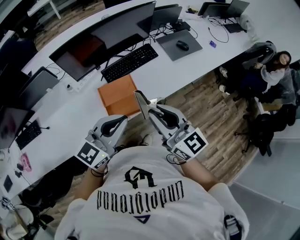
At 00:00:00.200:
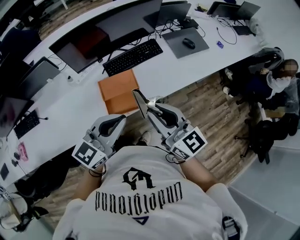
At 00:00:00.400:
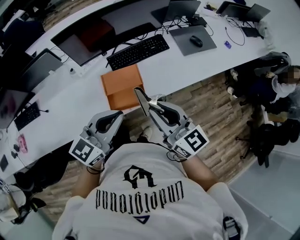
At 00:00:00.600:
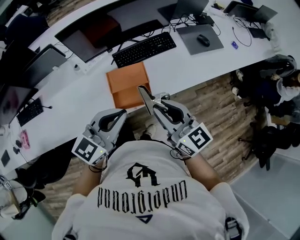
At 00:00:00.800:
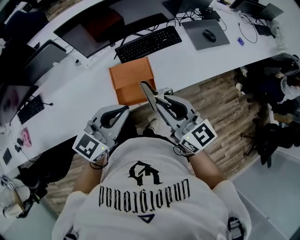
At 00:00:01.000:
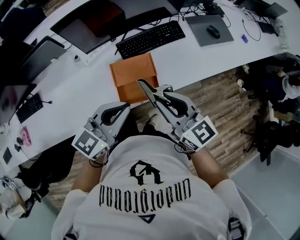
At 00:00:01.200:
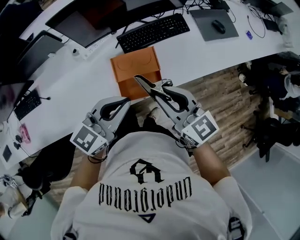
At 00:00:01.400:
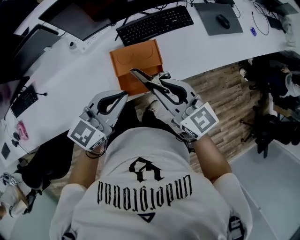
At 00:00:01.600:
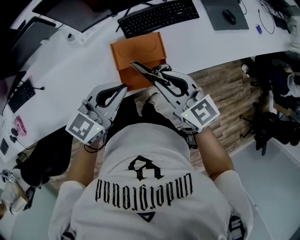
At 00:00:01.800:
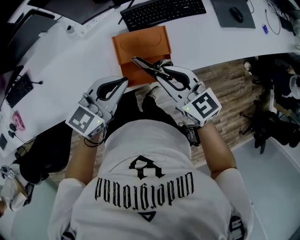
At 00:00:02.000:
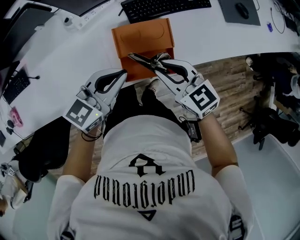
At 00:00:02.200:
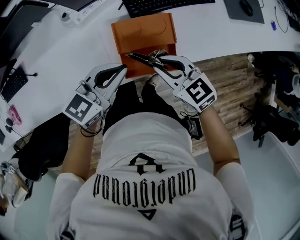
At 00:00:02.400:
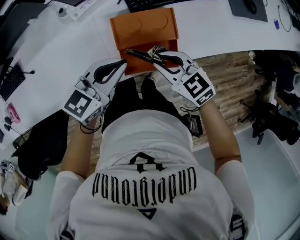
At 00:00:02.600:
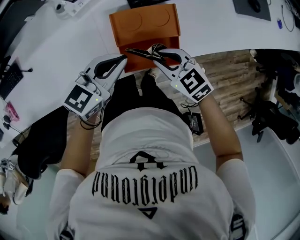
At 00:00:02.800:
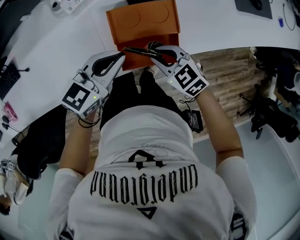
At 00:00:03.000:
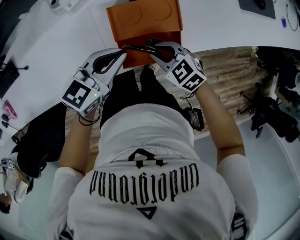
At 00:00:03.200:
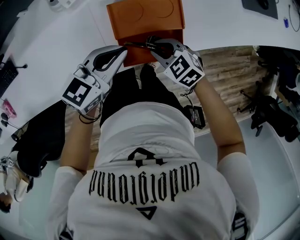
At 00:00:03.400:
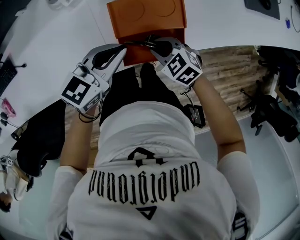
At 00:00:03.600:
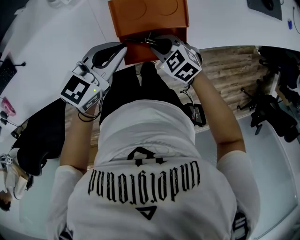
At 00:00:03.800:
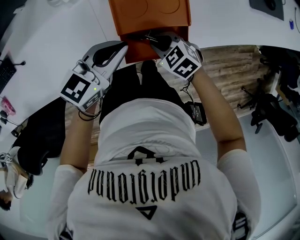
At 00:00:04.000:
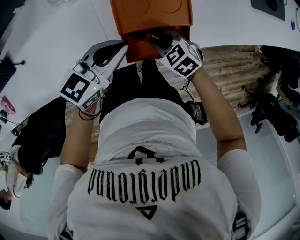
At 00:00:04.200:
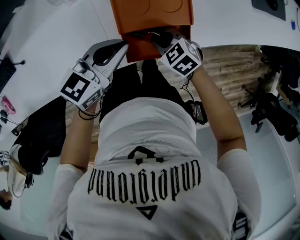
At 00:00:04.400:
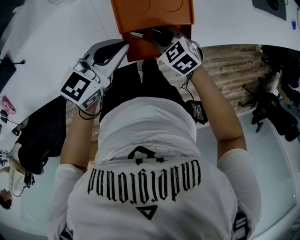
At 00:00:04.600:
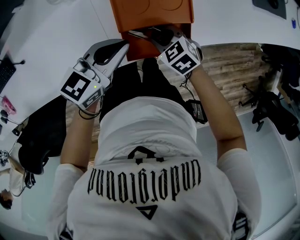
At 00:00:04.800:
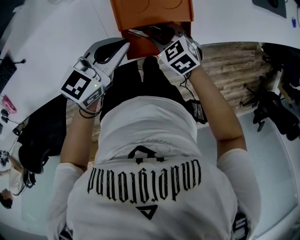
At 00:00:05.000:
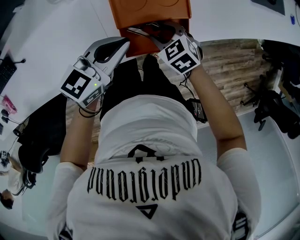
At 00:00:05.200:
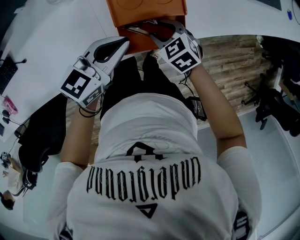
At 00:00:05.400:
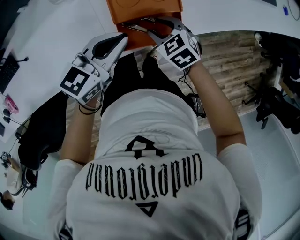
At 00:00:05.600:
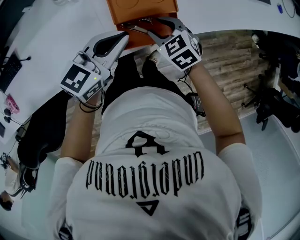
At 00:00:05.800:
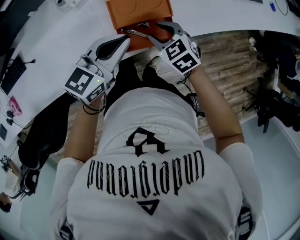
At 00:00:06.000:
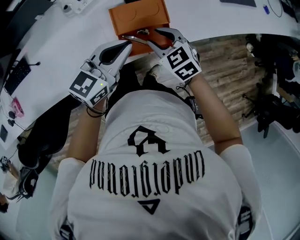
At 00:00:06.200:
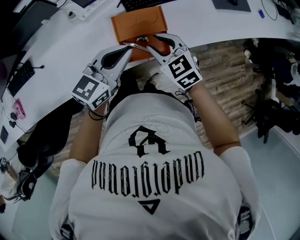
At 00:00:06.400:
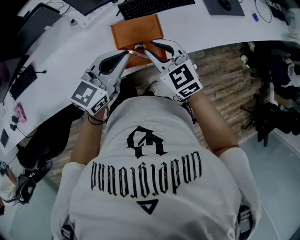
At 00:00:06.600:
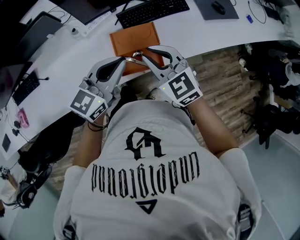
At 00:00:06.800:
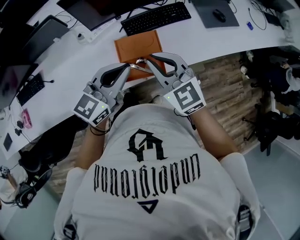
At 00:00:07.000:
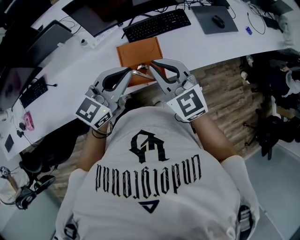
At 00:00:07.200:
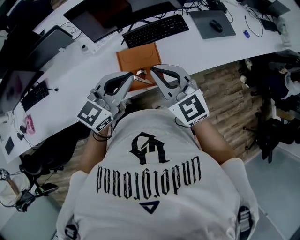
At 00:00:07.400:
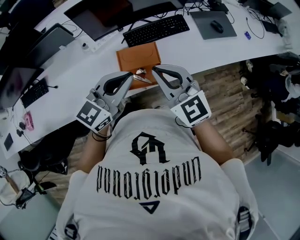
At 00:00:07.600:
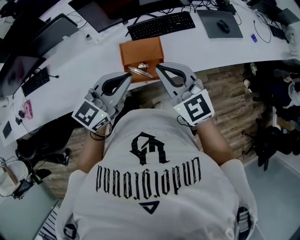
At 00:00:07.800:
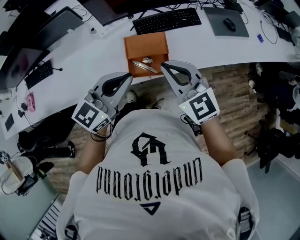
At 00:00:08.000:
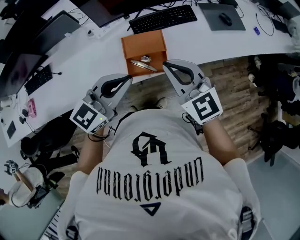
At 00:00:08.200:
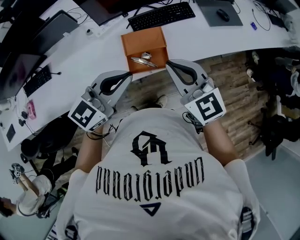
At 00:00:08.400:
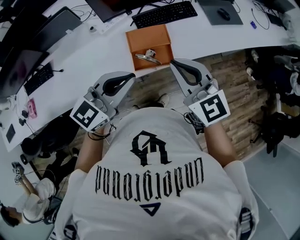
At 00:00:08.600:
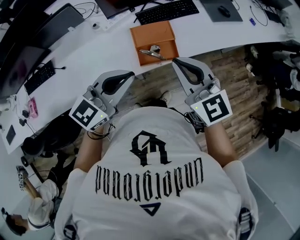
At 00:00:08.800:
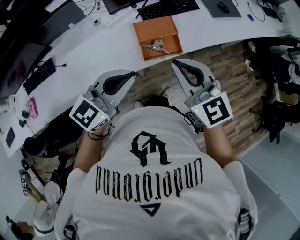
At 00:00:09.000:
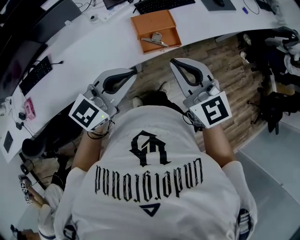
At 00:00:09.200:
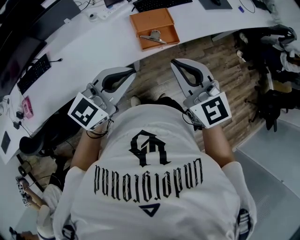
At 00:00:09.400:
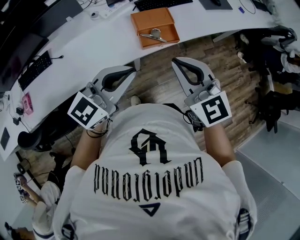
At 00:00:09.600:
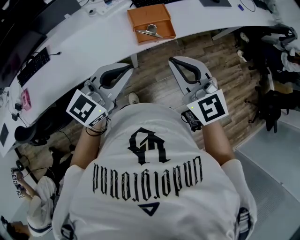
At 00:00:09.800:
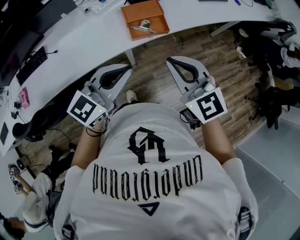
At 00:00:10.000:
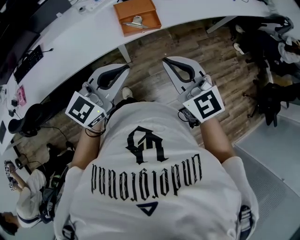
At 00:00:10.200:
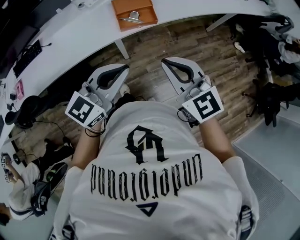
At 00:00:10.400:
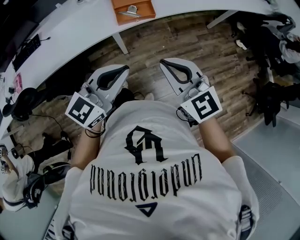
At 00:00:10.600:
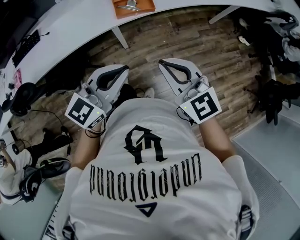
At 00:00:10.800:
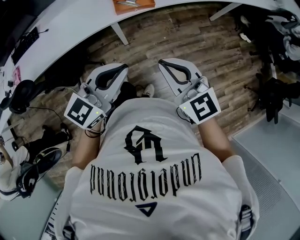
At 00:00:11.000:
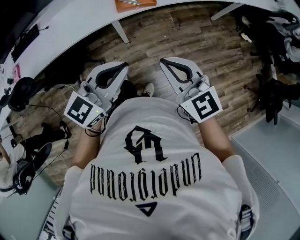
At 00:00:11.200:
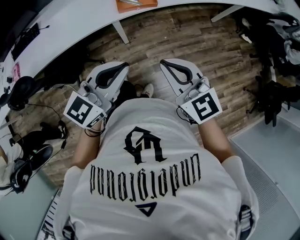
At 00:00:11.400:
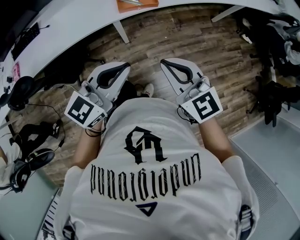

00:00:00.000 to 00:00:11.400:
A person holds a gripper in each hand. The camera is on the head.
00:00:00.000 to 00:00:01.400: The grippers both shift downward, forward and to the left by about 20 cm. The right gripper turns by about 20 degrees.
00:00:01.400 to 00:00:02.800: The right gripper heads downward, covering approximately 25 cm, and swivels approximately 40 degrees. The left gripper shifts roughly 15 cm downward.
00:00:02.800 to 00:00:04.200: The right gripper goes some 10 cm downward.
00:00:04.200 to 00:00:05.600: Both grippers move upward, approximately 10 cm.
00:00:05.600 to 00:00:07.200: The right gripper shifts some 30 cm upward, tilts its fingers about 40 degrees upward, and closes. The left gripper is displaced upward by approximately 20 cm, and rotates some 20 degrees.
00:00:07.200 to 00:00:08.600: The right gripper heads backward, covering roughly 10 cm, while the left gripper heads backward and to the left, covering approximately 15 cm.
00:00:08.600 to 00:00:10.000: Both grippers move backward, about 20 cm.
00:00:10.000 to 00:00:11.400: The two grippers go approximately 10 cm backward and to the right.

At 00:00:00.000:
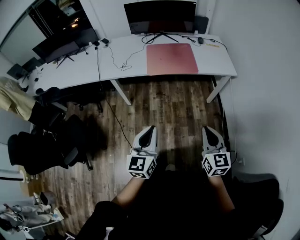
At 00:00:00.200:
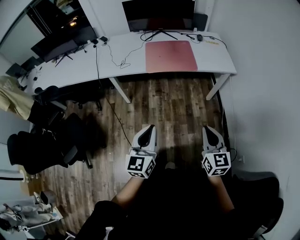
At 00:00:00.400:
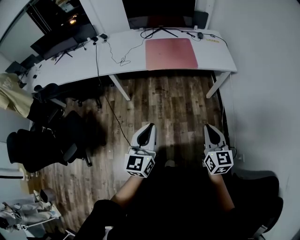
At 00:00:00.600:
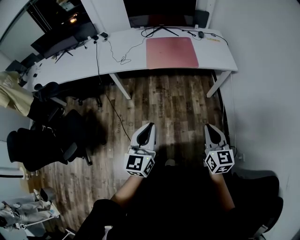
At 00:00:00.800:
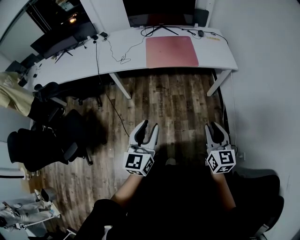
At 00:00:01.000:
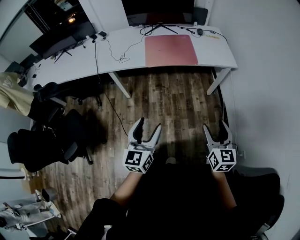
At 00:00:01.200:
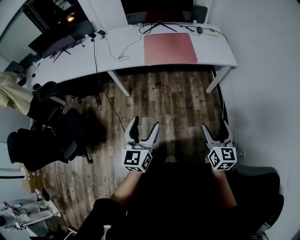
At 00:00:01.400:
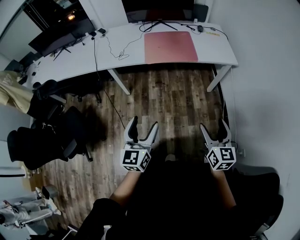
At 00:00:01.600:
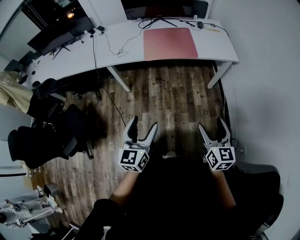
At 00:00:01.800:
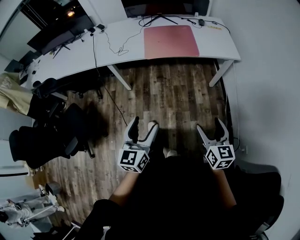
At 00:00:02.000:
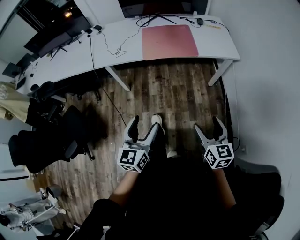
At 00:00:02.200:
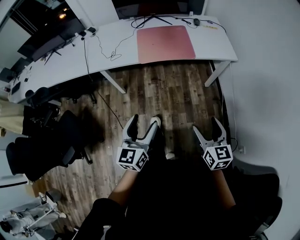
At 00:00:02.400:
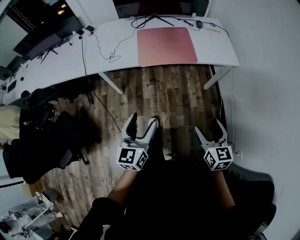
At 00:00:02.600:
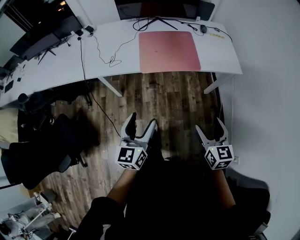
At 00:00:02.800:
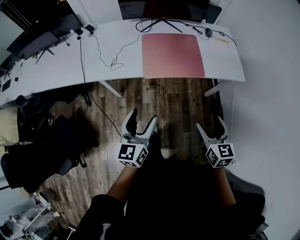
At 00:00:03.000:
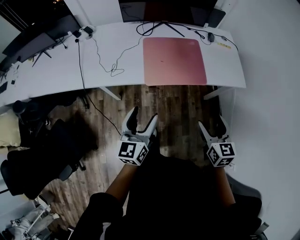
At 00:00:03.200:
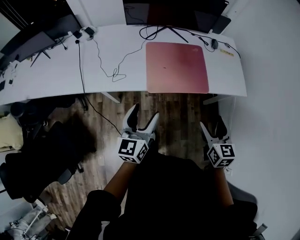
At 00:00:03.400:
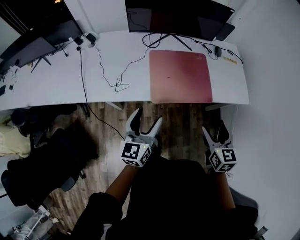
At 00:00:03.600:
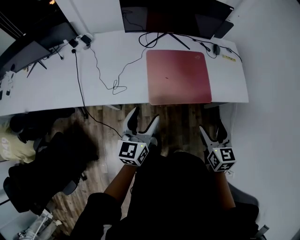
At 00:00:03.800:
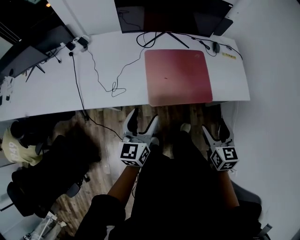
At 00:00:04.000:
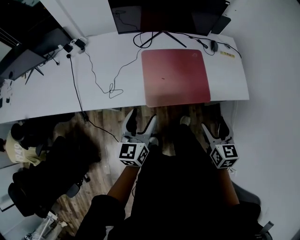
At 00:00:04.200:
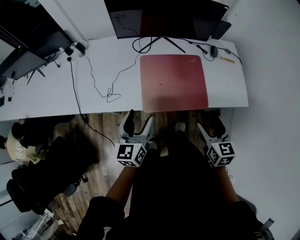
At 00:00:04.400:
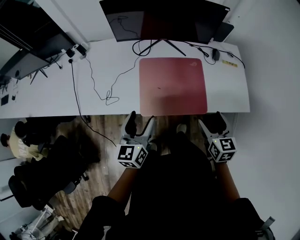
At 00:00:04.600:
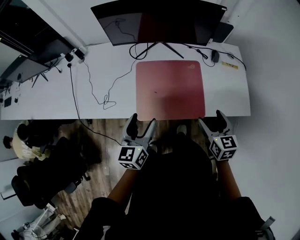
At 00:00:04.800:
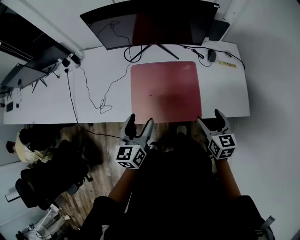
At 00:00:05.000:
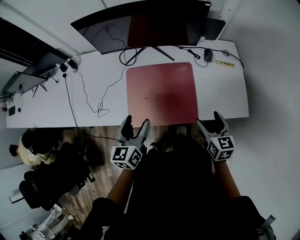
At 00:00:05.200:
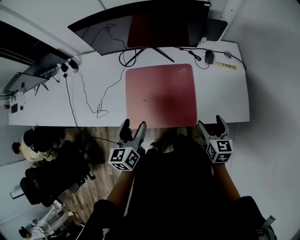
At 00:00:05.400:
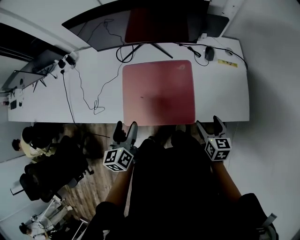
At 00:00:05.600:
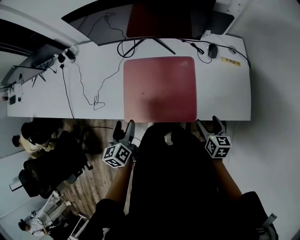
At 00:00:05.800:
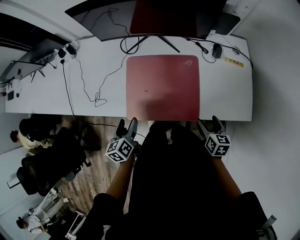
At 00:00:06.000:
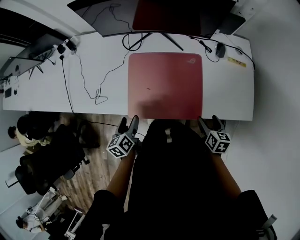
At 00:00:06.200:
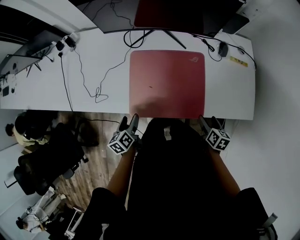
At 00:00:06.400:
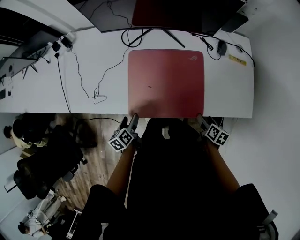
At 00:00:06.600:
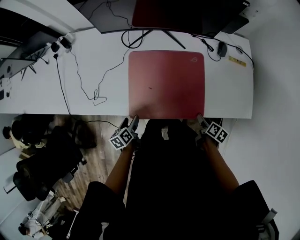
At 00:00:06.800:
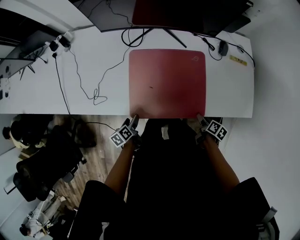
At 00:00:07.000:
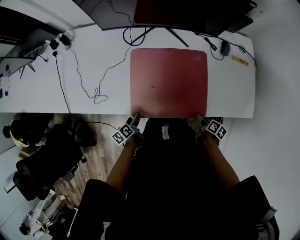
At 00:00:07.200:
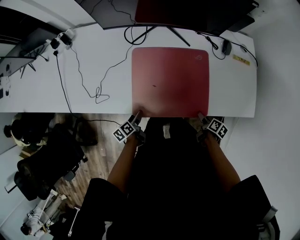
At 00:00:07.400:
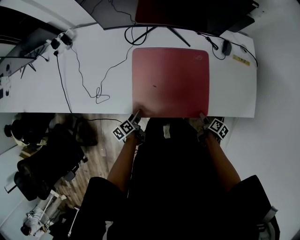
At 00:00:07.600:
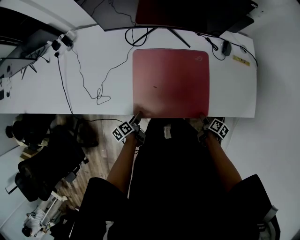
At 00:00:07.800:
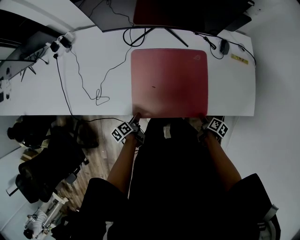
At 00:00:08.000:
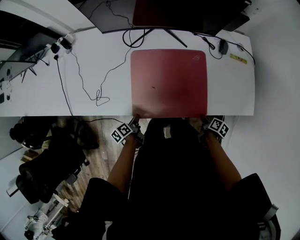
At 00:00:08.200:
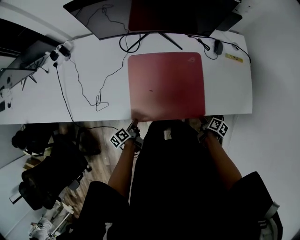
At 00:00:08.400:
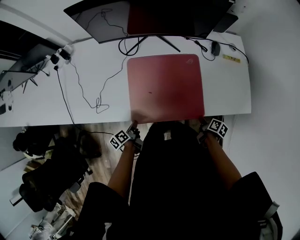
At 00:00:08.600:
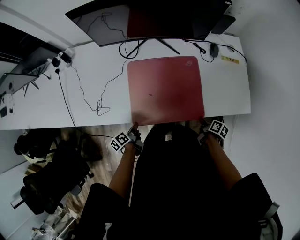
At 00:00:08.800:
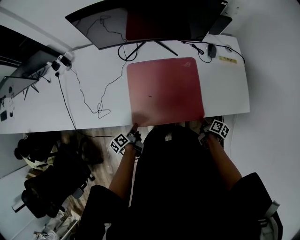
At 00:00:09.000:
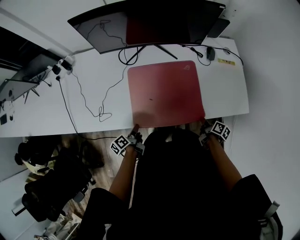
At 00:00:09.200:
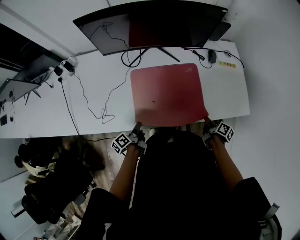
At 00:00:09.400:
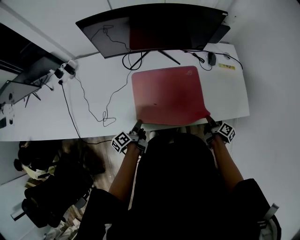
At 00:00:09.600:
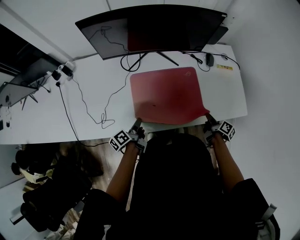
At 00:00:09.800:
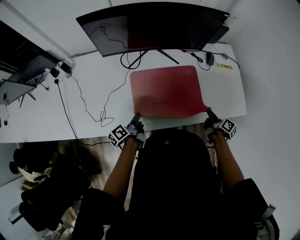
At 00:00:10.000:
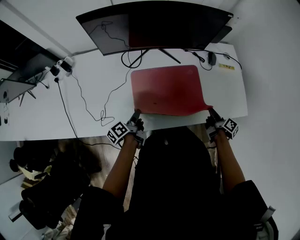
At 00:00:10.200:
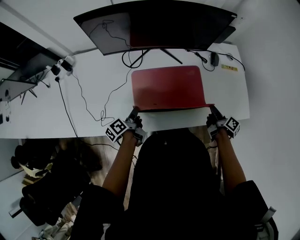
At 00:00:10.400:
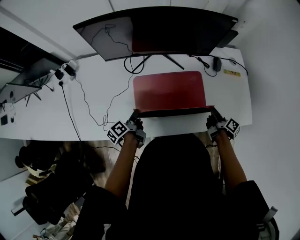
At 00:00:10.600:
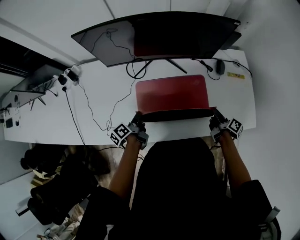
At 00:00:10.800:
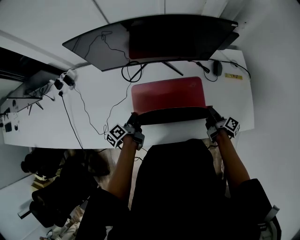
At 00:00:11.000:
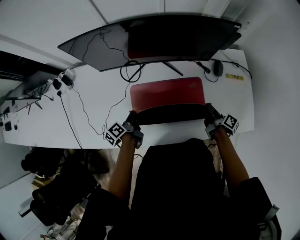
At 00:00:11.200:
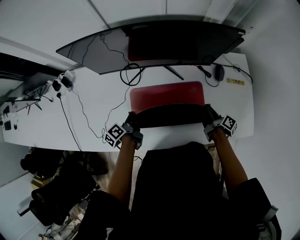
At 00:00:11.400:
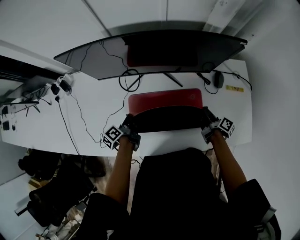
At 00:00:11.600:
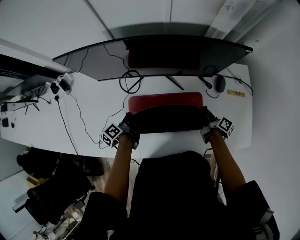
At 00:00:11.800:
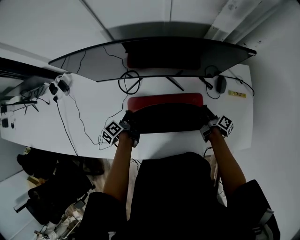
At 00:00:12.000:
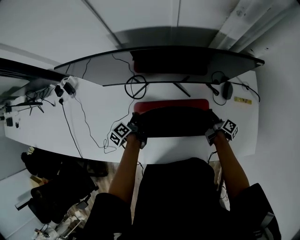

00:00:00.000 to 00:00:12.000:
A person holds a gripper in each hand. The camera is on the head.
00:00:00.000 to 00:00:01.600: The left gripper opens up; the right gripper shifts by about 5 cm, and opens its fingers.
00:00:01.600 to 00:00:03.000: Both grippers travel together forward, roughly 35 cm.
00:00:03.000 to 00:00:04.400: Both grippers move forward, approximately 20 cm.
00:00:04.400 to 00:00:06.000: The right gripper goes some 20 cm downward and to the right, and swivels roughly 30 degrees. Meanwhile the left gripper travels downward by some 20 cm, and swivels roughly 30 degrees.
00:00:06.000 to 00:00:07.600: Both grippers travel together downward, some 15 cm. The right gripper turns by about 40 degrees. Meanwhile the left gripper rotates about 30 degrees.
00:00:07.600 to 00:00:09.000: The grippers both shift upward by about 5 cm. The right gripper closes its fingers, while the left gripper closes.
00:00:09.000 to 00:00:10.400: Both grippers move forward and upward, some 15 cm. The right gripper swivels some 20 degrees.
00:00:10.400 to 00:00:12.000: The two grippers go approximately 15 cm forward.
